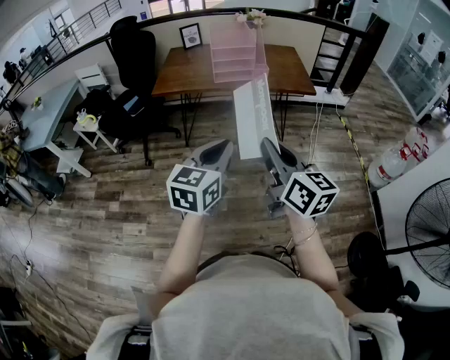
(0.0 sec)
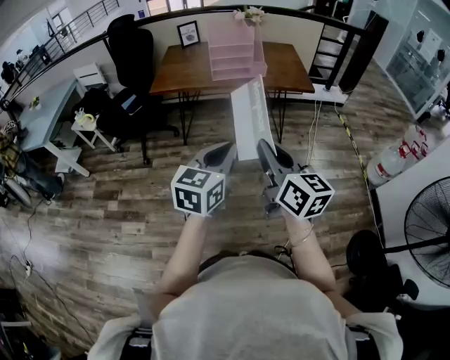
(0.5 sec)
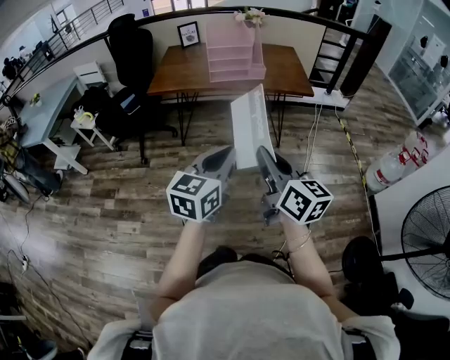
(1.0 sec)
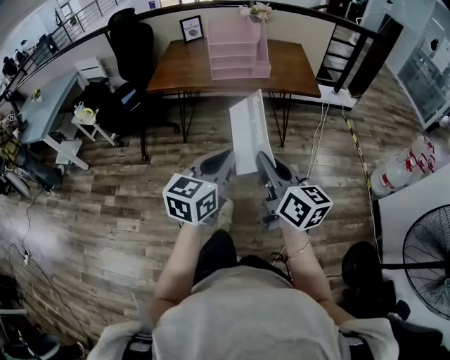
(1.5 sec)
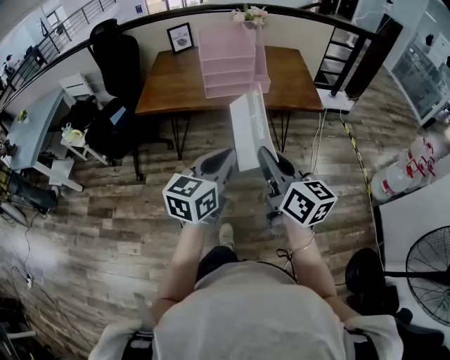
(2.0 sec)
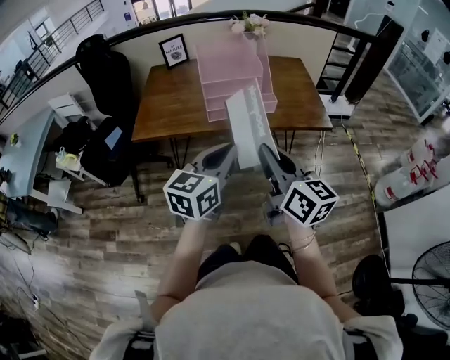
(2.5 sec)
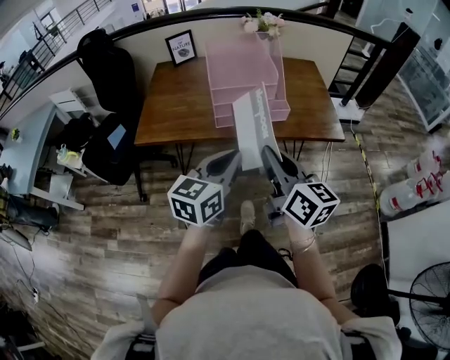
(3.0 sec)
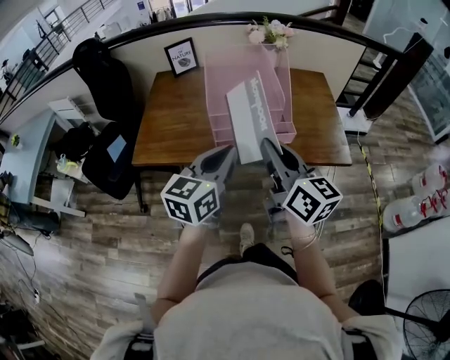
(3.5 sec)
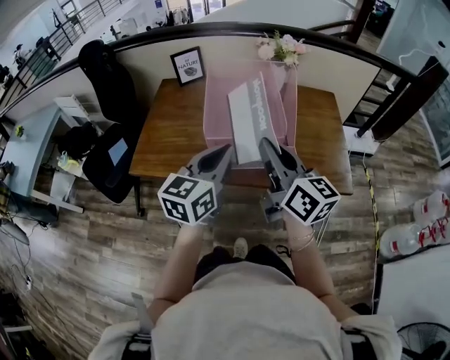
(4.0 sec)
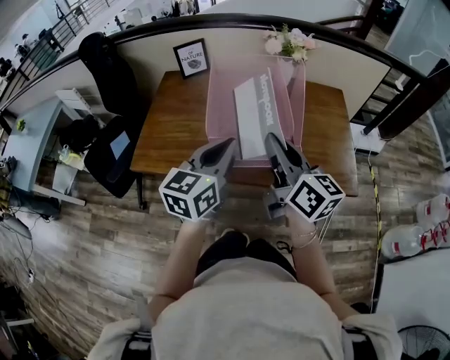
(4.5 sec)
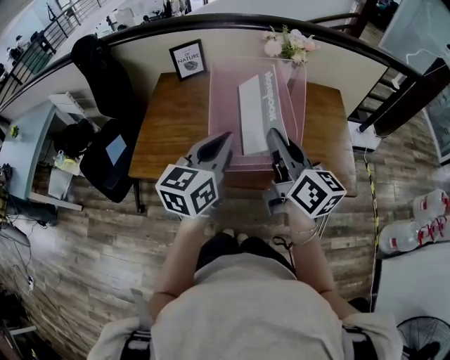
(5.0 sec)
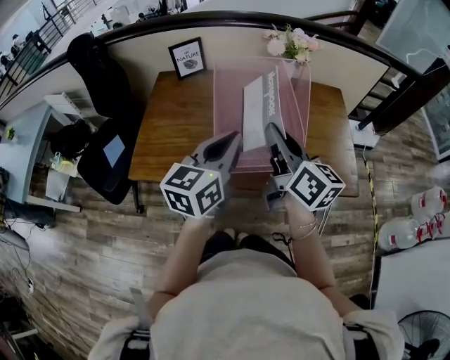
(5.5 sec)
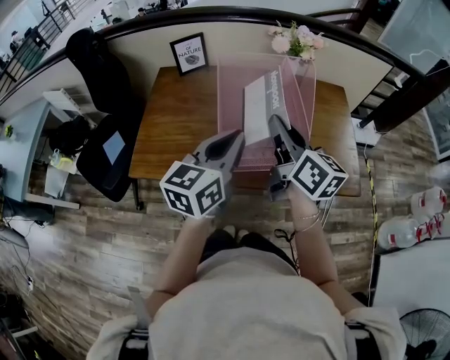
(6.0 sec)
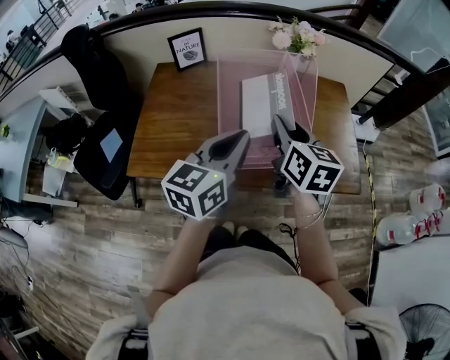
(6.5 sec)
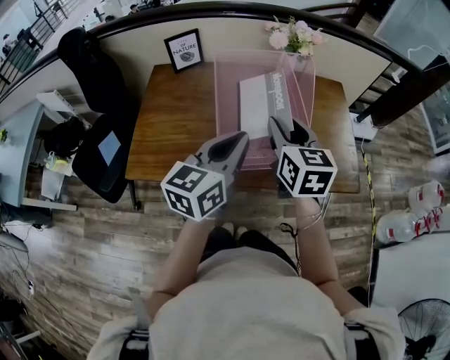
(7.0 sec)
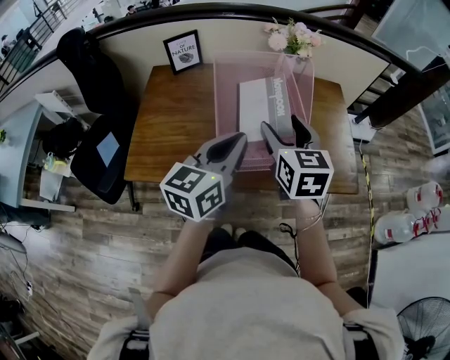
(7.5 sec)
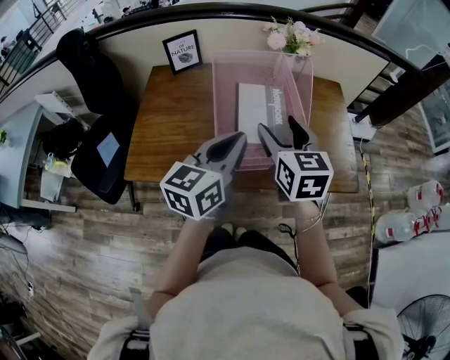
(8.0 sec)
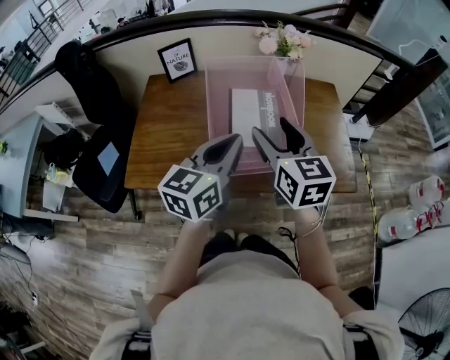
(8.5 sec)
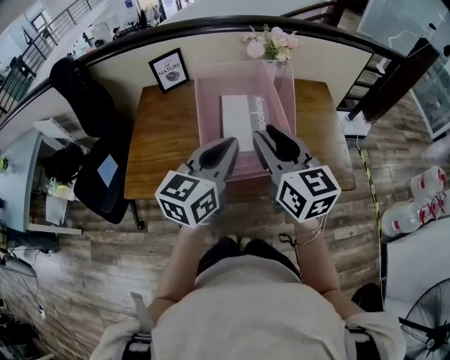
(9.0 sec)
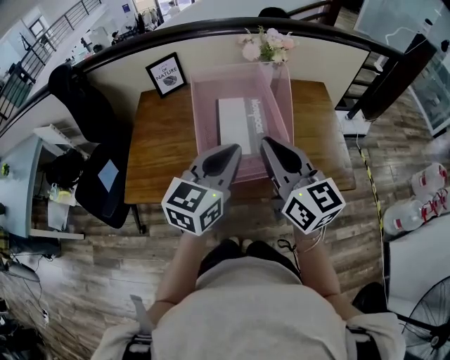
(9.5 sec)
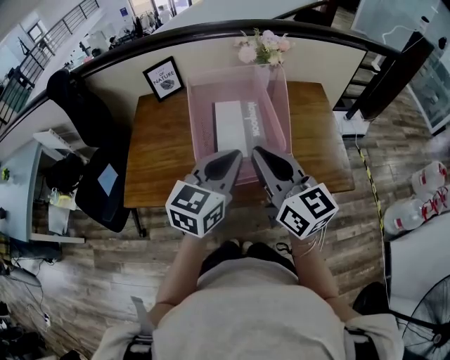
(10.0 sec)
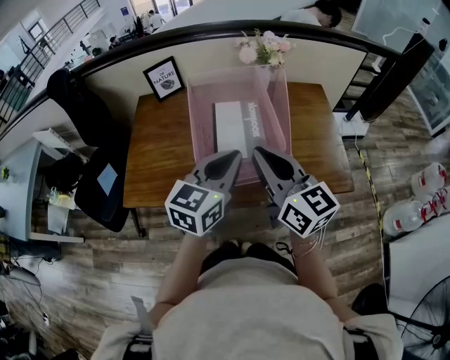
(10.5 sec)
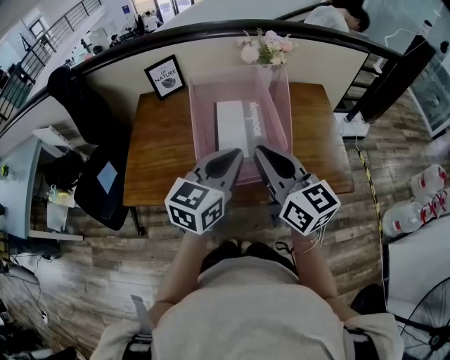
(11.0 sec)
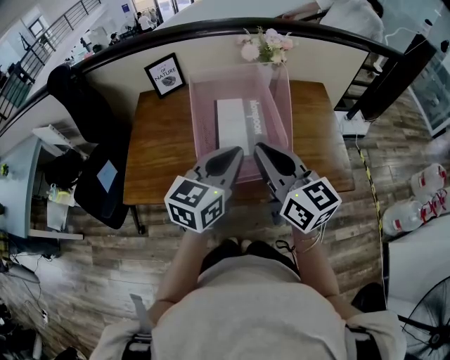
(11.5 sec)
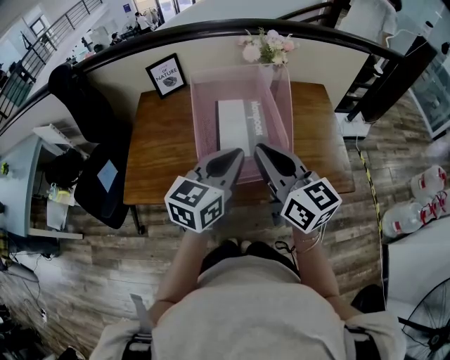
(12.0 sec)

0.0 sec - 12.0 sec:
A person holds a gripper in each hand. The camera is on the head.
0.0 sec - 2.0 sec: Both grippers move forward, approximately 20 cm.
2.0 sec - 4.0 sec: Both grippers travel together forward, approximately 40 cm.
4.0 sec - 6.0 sec: The left gripper heads forward, covering some 5 cm; the right gripper heads forward, covering some 10 cm.
6.0 sec - 8.0 sec: The right gripper rotates about 40 degrees, and opens.
8.0 sec - 10.0 sec: The right gripper travels backward and upward by roughly 10 cm, swivels approximately 30 degrees, and closes its fingers.
10.0 sec - 12.0 sec: The grippers stay close to where they were, moving slightly.

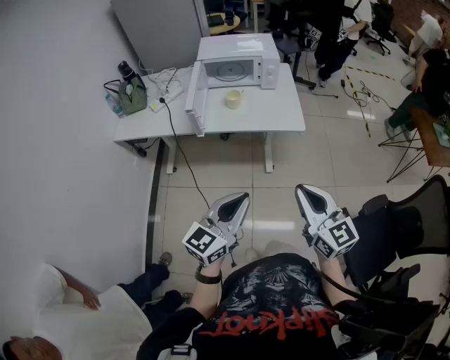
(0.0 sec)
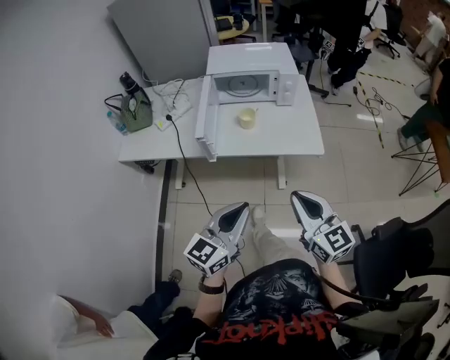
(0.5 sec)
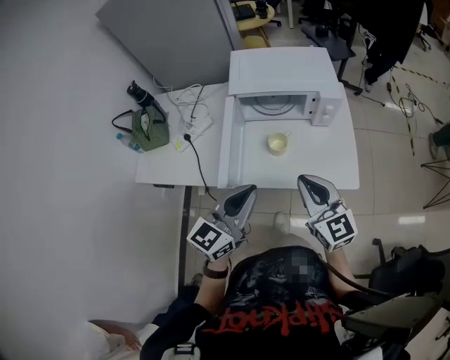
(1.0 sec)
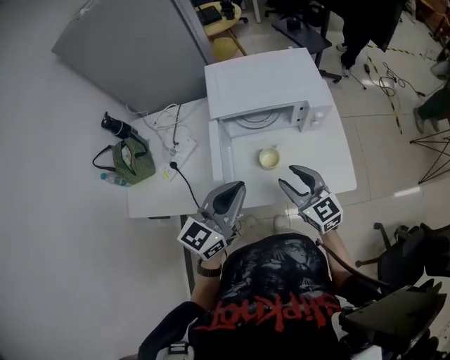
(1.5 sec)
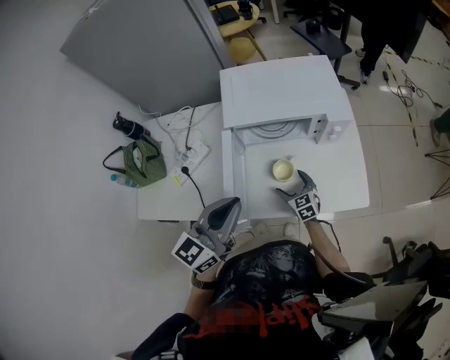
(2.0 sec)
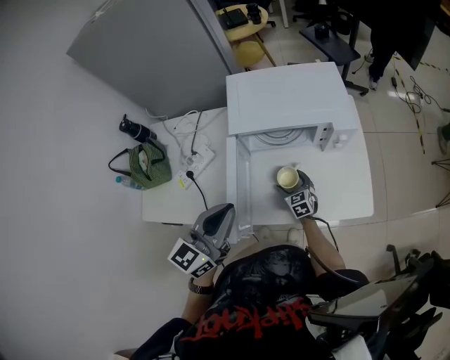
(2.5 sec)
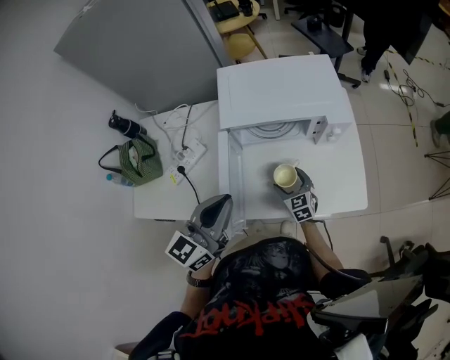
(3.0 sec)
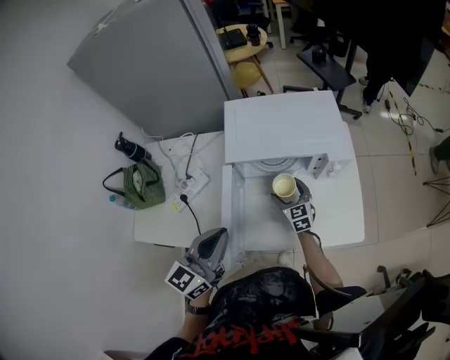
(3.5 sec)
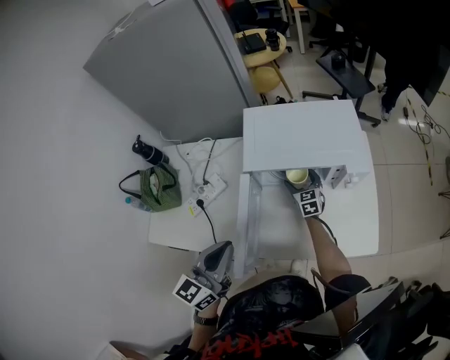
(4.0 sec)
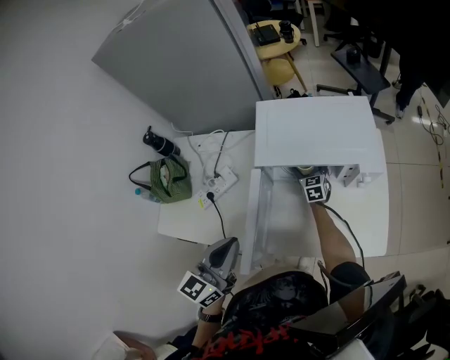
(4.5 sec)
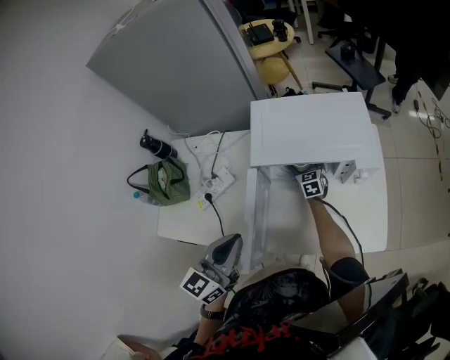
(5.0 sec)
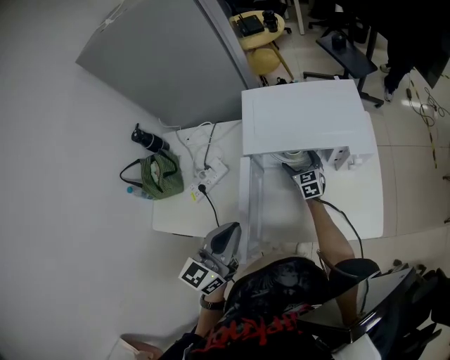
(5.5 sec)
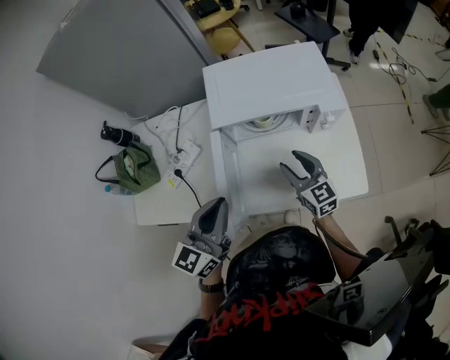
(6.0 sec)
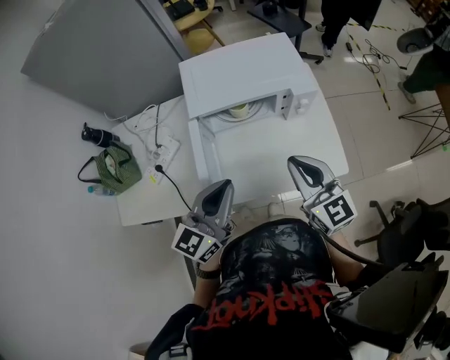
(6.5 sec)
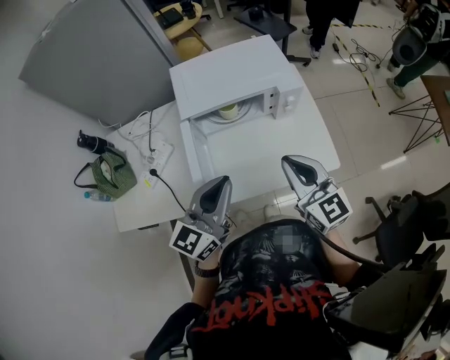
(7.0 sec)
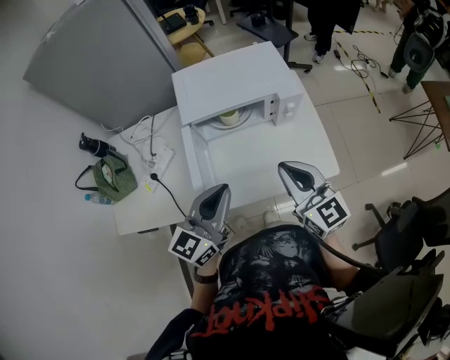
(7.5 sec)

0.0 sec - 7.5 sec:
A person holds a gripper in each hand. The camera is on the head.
0.0 sec - 2.0 sec: The pair of grippers is taken forward and to the left, roughly 60 cm. The right gripper shifts some 40 cm downward, turns by roughly 30 degrees, and opens.
2.0 sec - 4.0 sec: The left gripper goes roughly 5 cm to the left. The right gripper shifts some 20 cm forward.
4.0 sec - 5.5 sec: The grippers move only a little.
5.5 sec - 7.5 sec: The right gripper heads upward, backward and to the right, covering approximately 40 cm, turns by about 20 degrees, and closes its fingers. The left gripper heads to the right, covering about 10 cm.

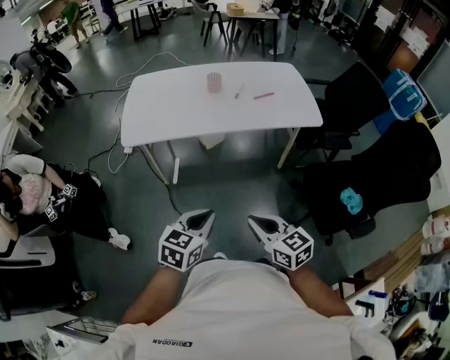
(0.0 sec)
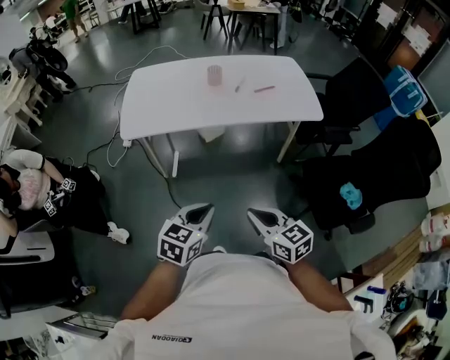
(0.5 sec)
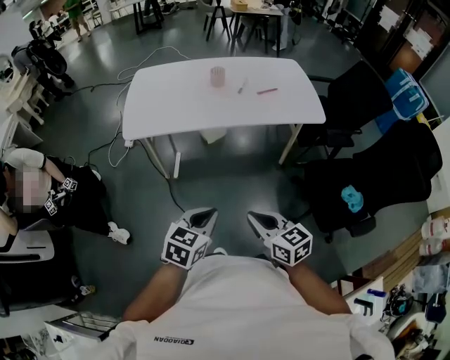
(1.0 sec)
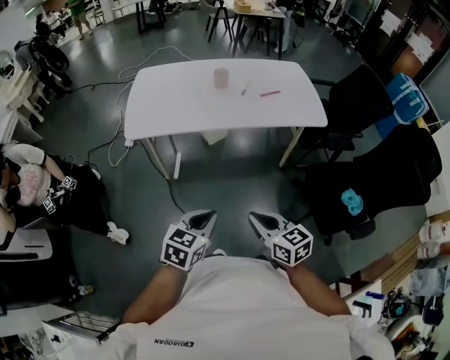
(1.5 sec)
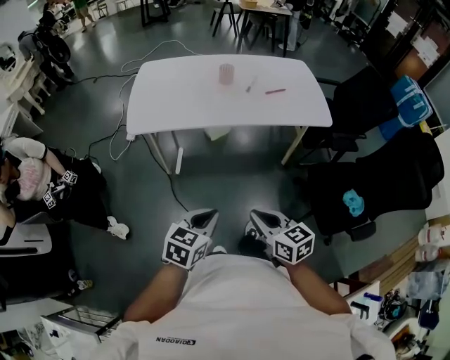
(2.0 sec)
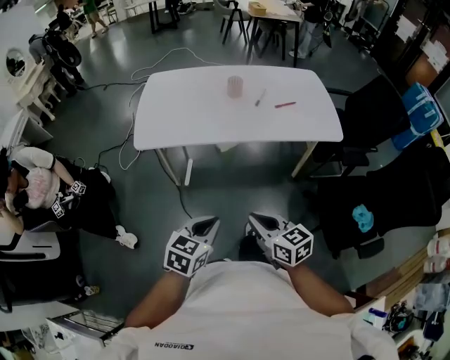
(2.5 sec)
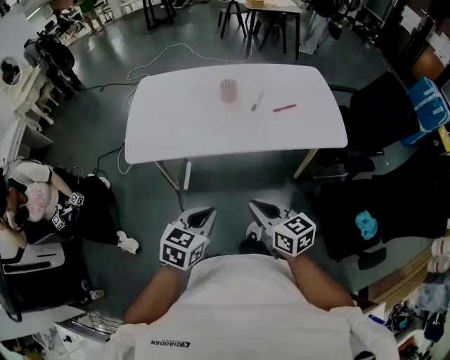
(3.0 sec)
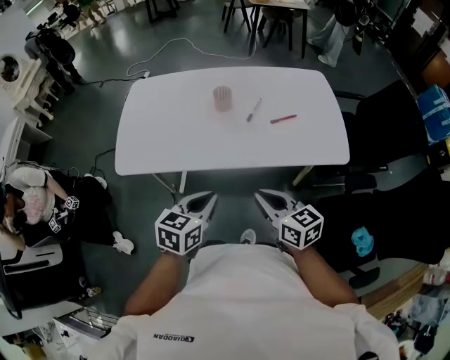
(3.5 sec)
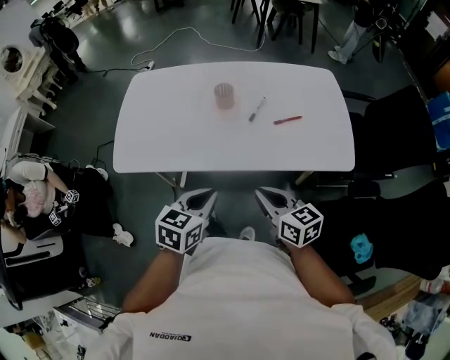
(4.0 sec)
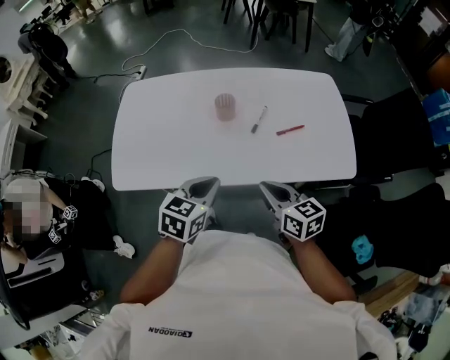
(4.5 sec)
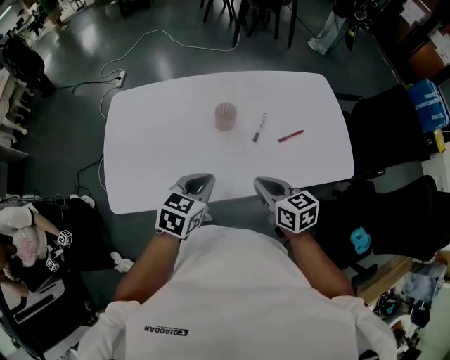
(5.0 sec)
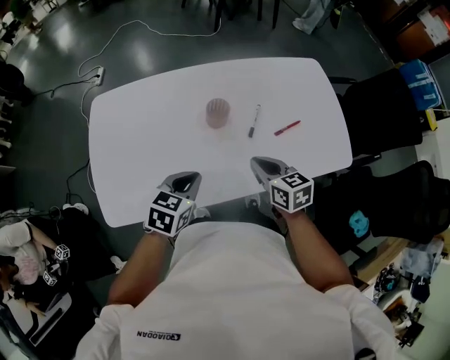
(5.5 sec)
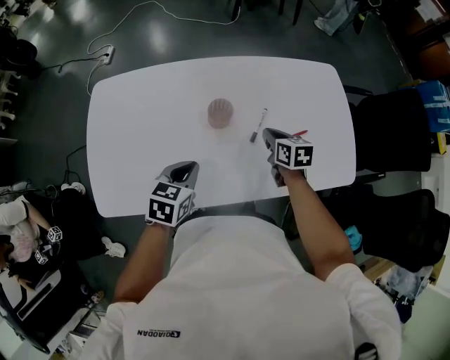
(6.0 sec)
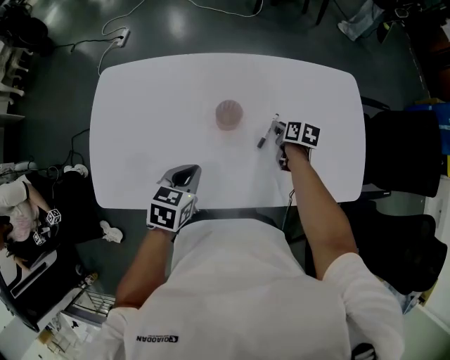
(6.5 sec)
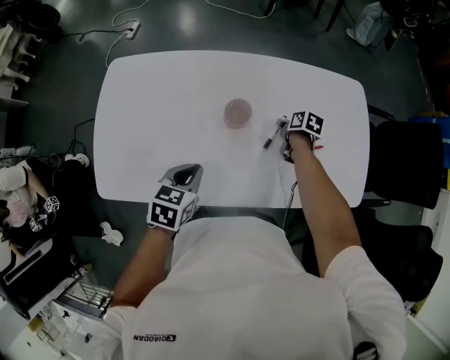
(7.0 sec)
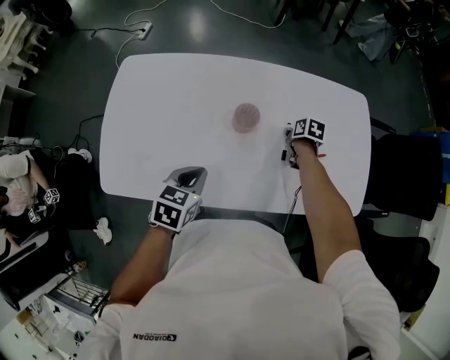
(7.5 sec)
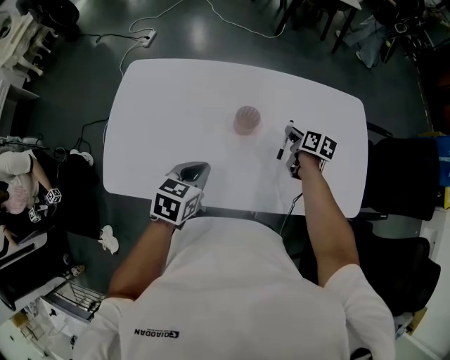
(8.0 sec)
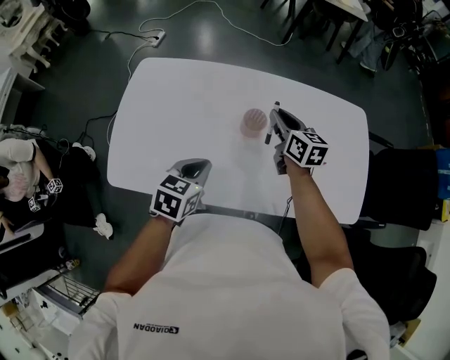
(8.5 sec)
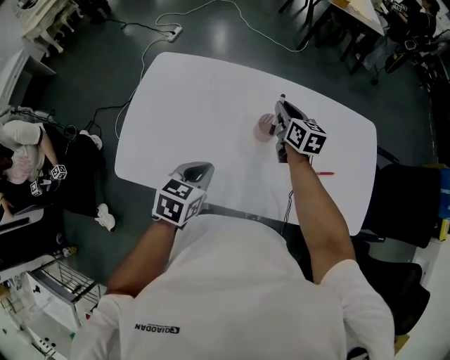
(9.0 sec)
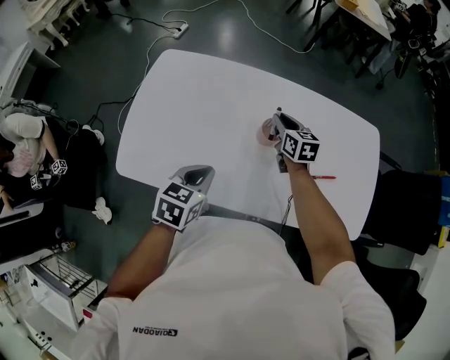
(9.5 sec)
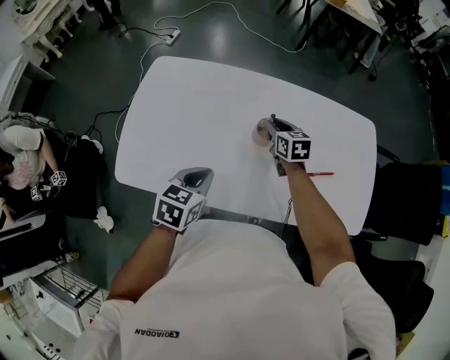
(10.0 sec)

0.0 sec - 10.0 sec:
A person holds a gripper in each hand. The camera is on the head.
0.0 sec - 2.0 sec: The grippers make only small movements.
2.0 sec - 4.0 sec: Both grippers move forward, roughly 35 cm.
4.0 sec - 6.0 sec: The left gripper shifts about 30 cm forward and to the left; the right gripper shifts some 35 cm forward, and changes its angle by about 30 degrees.
6.0 sec - 8.0 sec: The right gripper heads forward, covering about 5 cm, and goes downward and returns, some 10 cm each way.
8.0 sec - 10.0 sec: The right gripper travels to the left by about 15 cm, and rotates roughly 30 degrees. The left gripper shifts by roughly 5 cm.
